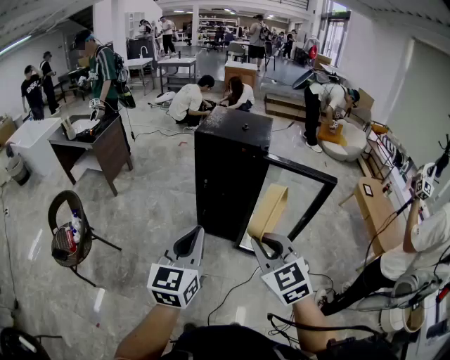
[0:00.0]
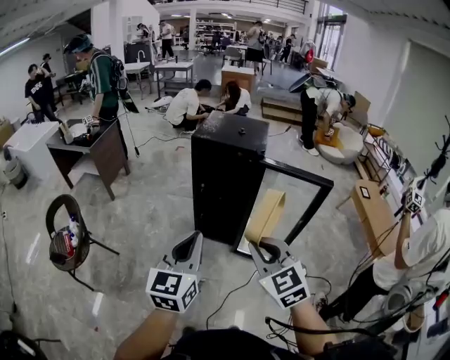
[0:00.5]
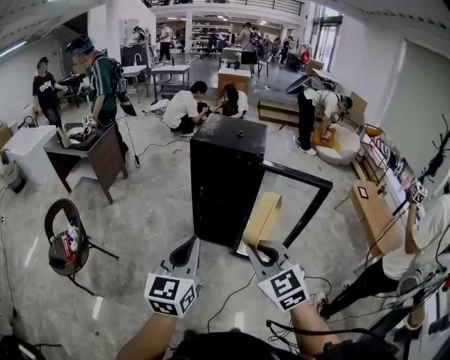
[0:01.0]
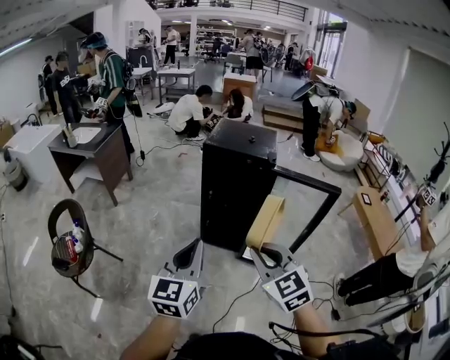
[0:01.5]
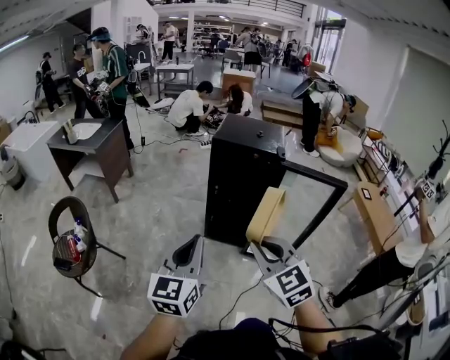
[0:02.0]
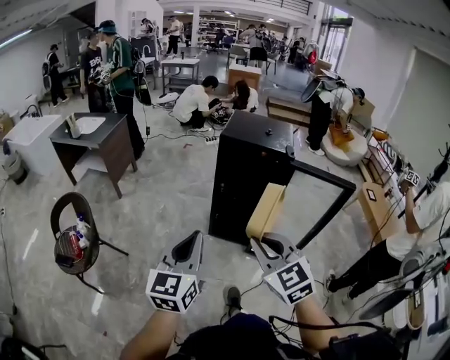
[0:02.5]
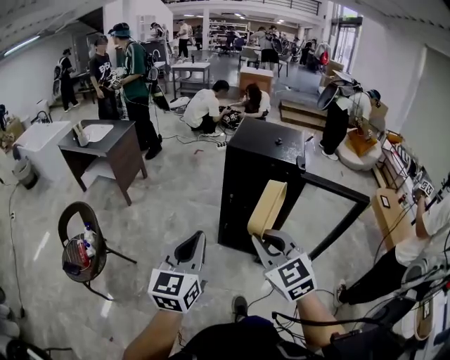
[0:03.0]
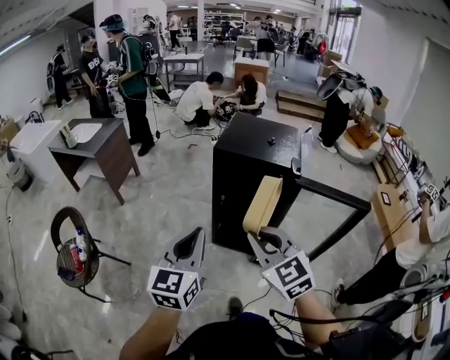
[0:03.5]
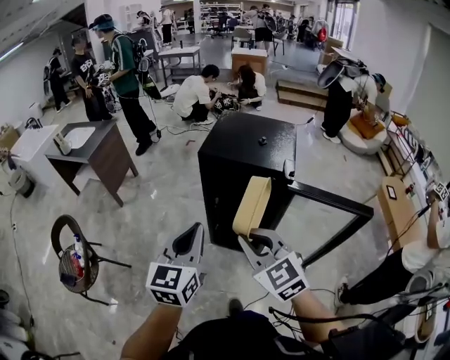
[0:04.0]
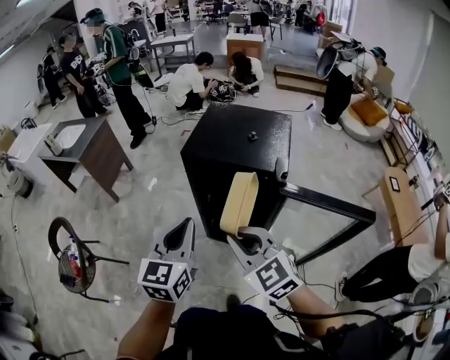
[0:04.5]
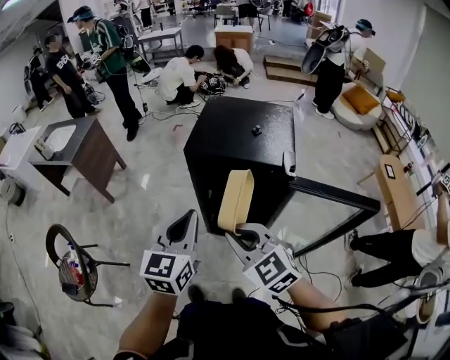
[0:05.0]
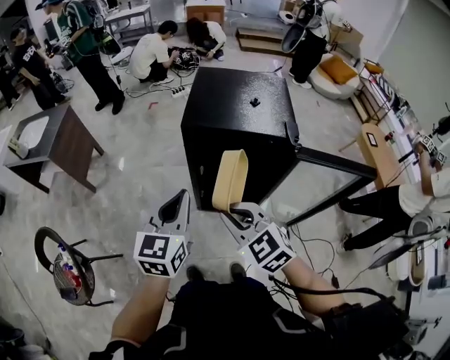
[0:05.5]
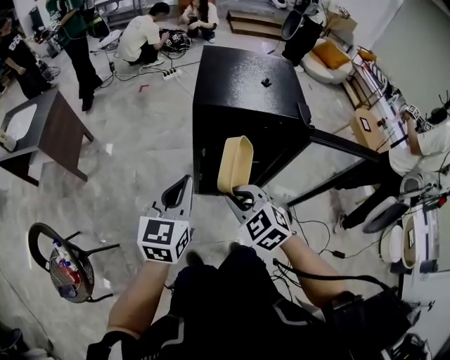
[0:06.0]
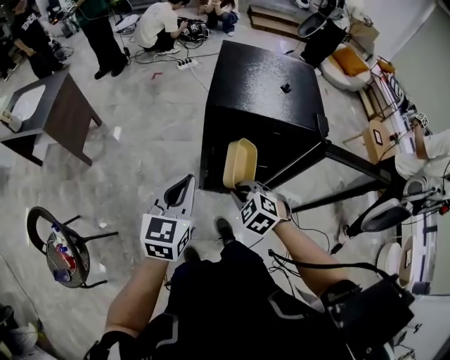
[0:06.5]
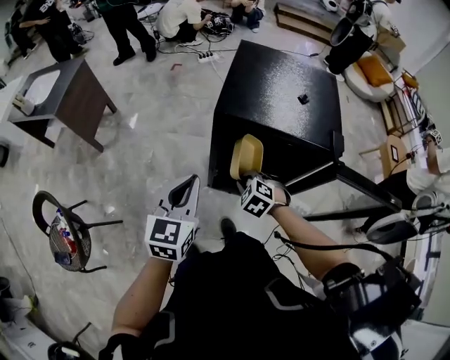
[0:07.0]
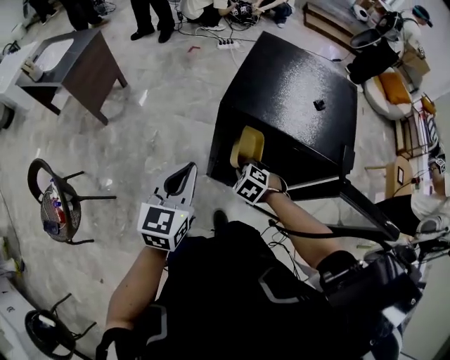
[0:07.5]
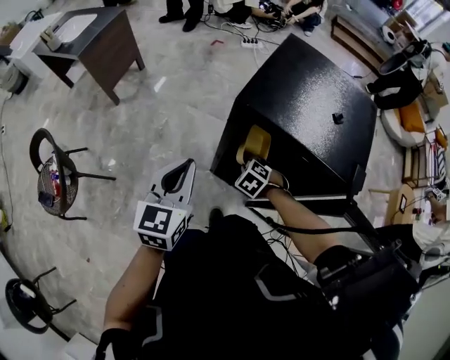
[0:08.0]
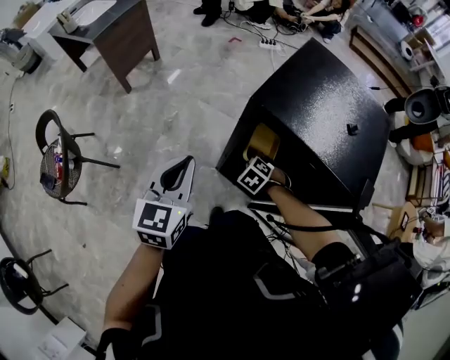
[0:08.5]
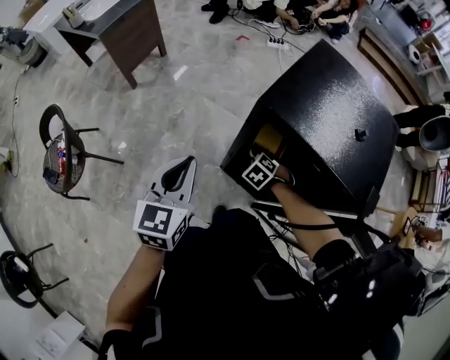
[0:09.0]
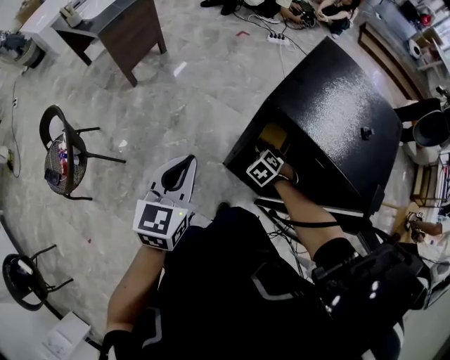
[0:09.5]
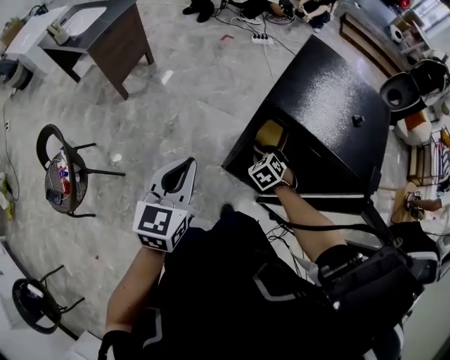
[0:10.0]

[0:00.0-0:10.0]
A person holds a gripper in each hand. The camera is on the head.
0:00.0 to 0:02.0: The grippers both shift to the left by roughly 10 cm.
0:02.0 to 0:04.0: The right gripper goes some 20 cm forward. The left gripper heads forward and to the right, covering about 25 cm.
0:04.0 to 0:06.0: The left gripper heads forward, downward and to the left, covering about 20 cm. The right gripper shifts about 20 cm downward, forward and to the left, and swivels some 20 degrees.
0:06.0 to 0:08.0: The left gripper goes some 10 cm forward and downward, and rotates about 20 degrees, while the right gripper heads downward and forward, covering roughly 30 cm, and tips its fingers downward by roughly 30 degrees.
0:08.0 to 0:10.0: The left gripper is displaced to the left by roughly 5 cm, while the right gripper opens its fingers.

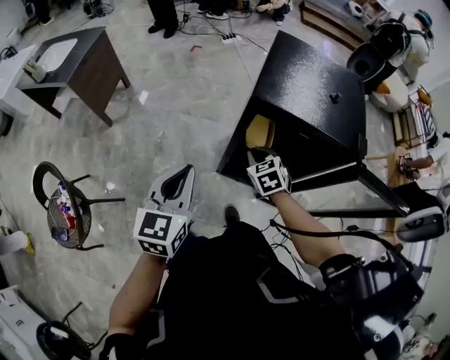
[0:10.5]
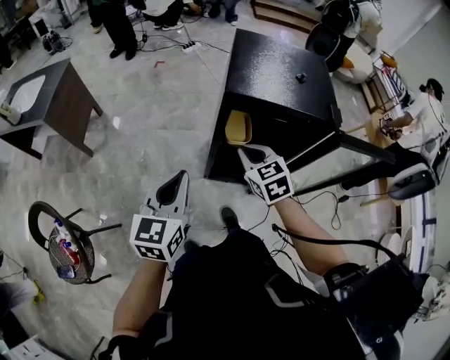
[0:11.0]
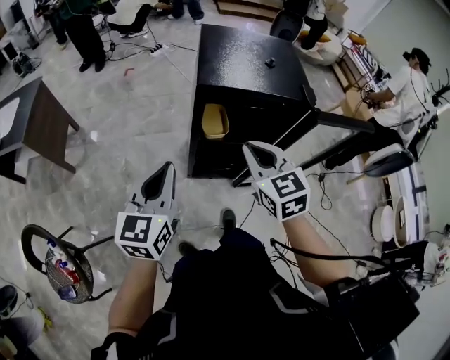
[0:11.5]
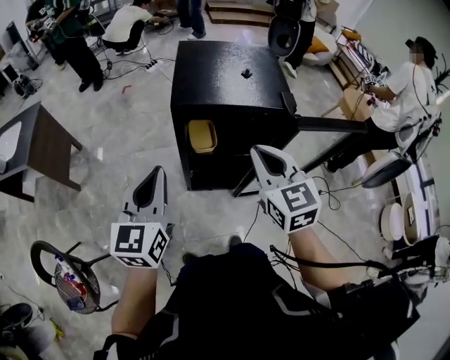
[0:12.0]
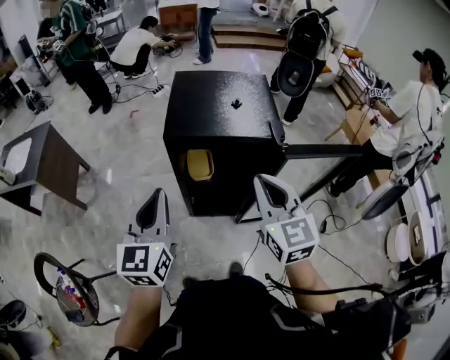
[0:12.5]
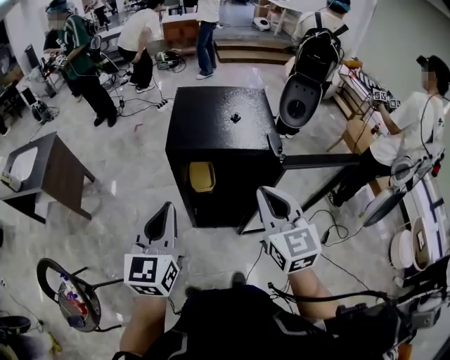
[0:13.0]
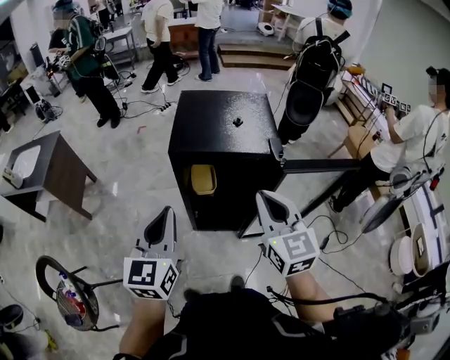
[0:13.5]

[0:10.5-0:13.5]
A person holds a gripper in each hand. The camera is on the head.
0:10.5 to 0:12.0: The right gripper travels upward, backward and to the right by roughly 30 cm, and rotates roughly 40 degrees; the left gripper shifts roughly 10 cm upward and to the right.
0:12.0 to 0:13.5: The two grippers go roughly 5 cm to the right.

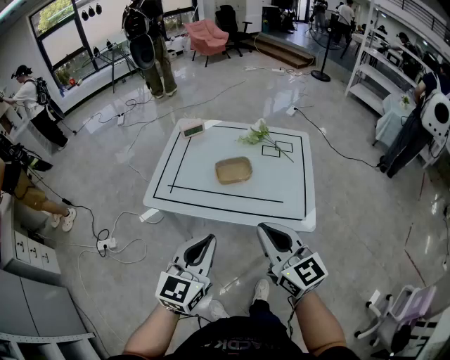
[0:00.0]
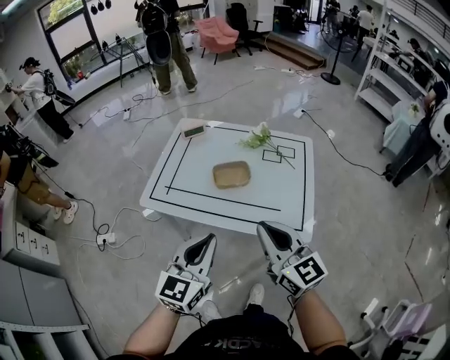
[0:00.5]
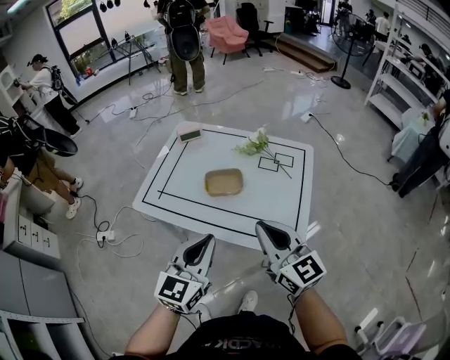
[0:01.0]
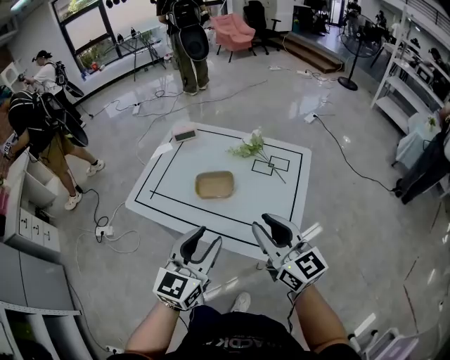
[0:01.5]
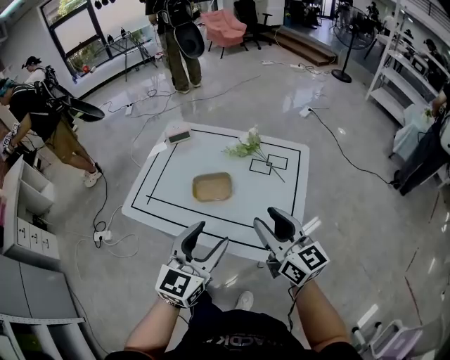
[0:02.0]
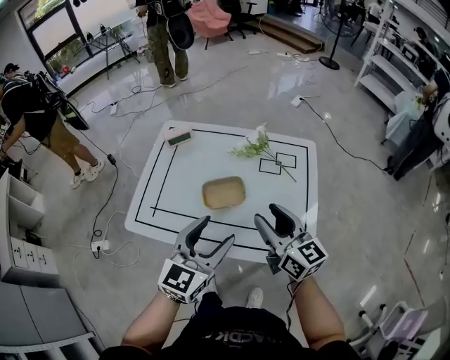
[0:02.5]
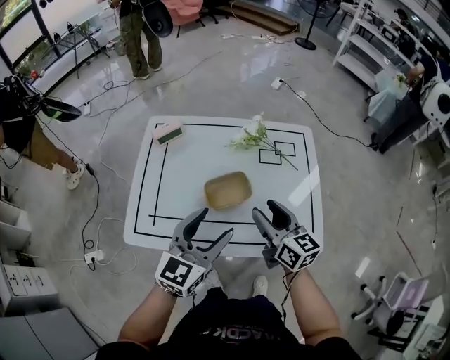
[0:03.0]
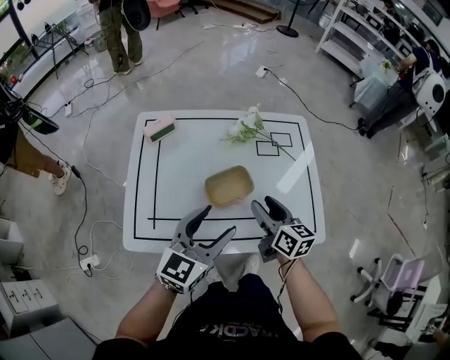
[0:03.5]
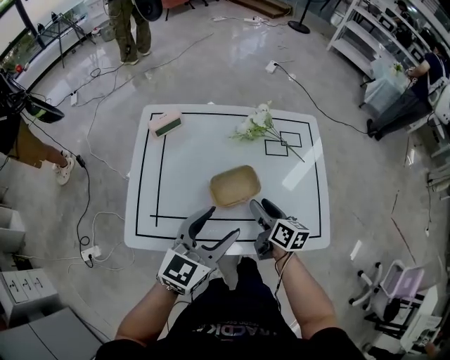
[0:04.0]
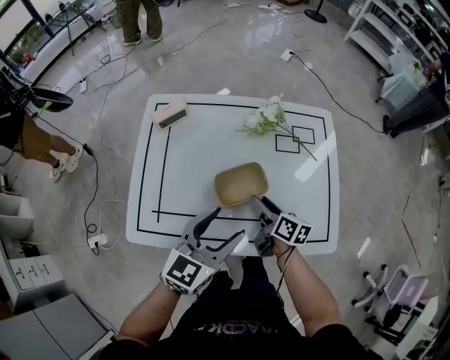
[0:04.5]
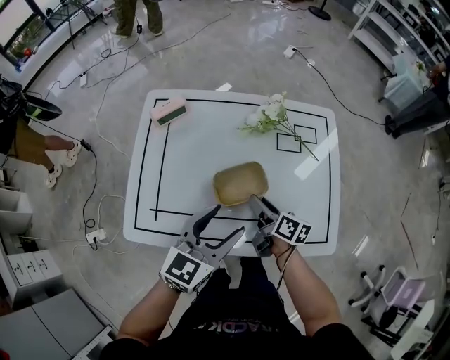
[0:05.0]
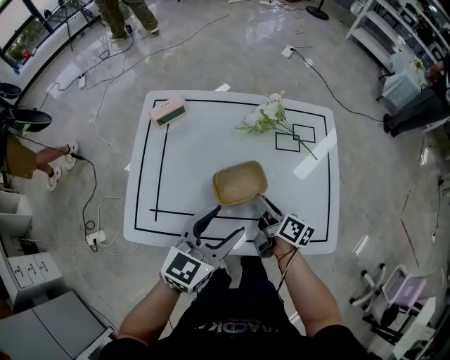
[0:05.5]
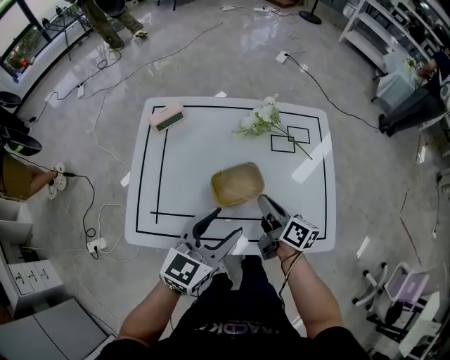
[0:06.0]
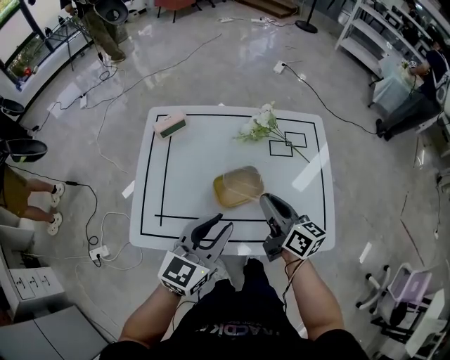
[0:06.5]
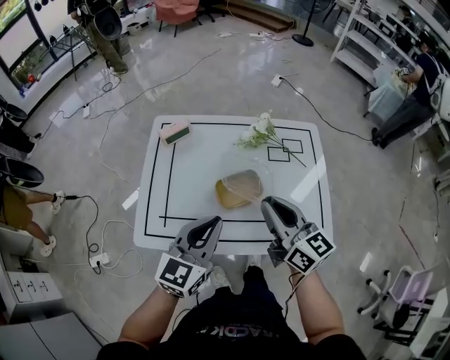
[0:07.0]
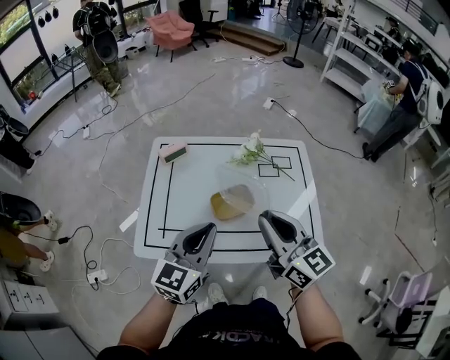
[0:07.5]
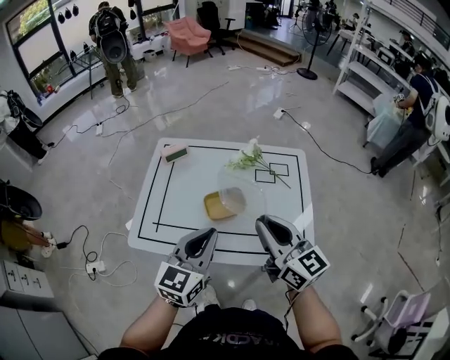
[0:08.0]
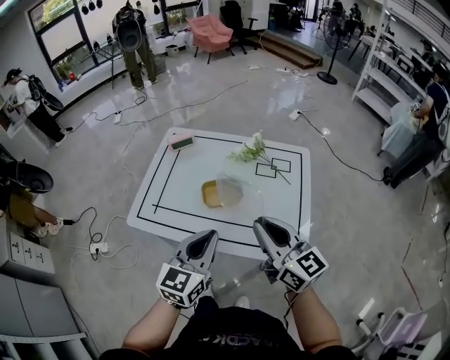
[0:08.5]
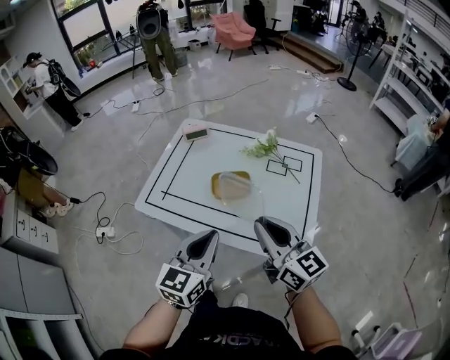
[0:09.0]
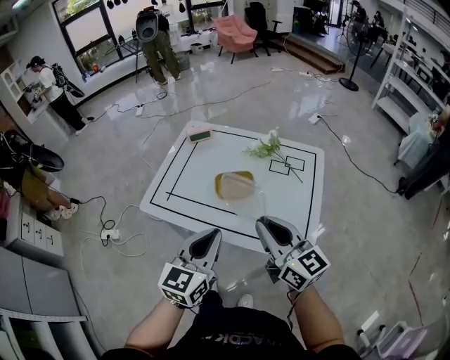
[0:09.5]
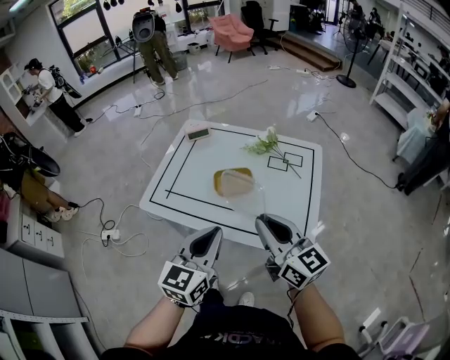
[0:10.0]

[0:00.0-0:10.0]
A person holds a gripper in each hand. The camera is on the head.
0:00.0 to 0:02.0: Both grippers travel together to the right and forward, approximately 20 cm. The left gripper opens; the right gripper opens up.
0:02.0 to 0:04.0: The left gripper moves about 20 cm, and swivels some 30 degrees. The right gripper travels downward by roughly 20 cm, and swivels roughly 50 degrees.
0:04.0 to 0:06.0: The right gripper closes.
0:06.0 to 0:08.0: The left gripper heads upward and backward, covering some 10 cm, and closes. Meanwhile the right gripper is displaced upward and backward by approximately 25 cm, and rotates around the line of its fingers by roughly 40 degrees, counterclockwise from behind.
0:08.0 to 0:10.0: The grippers both shift backward by approximately 10 cm.

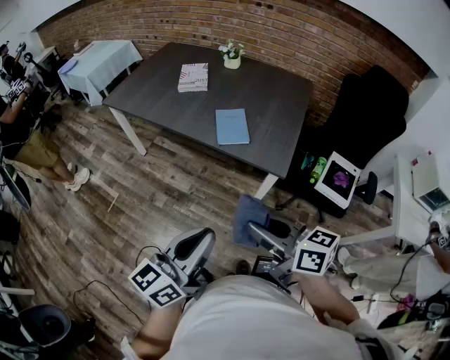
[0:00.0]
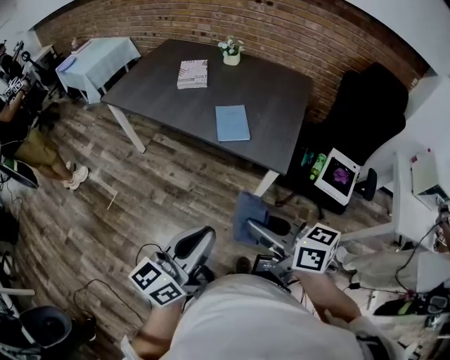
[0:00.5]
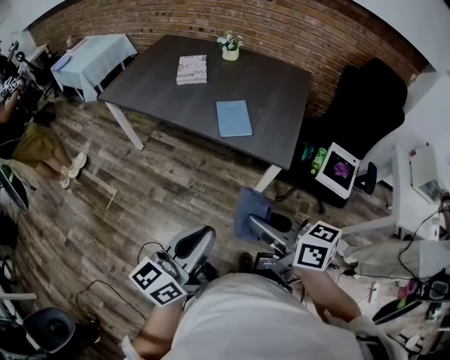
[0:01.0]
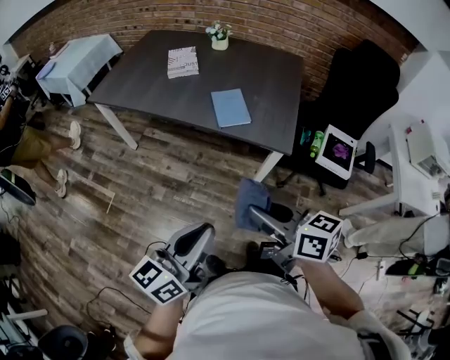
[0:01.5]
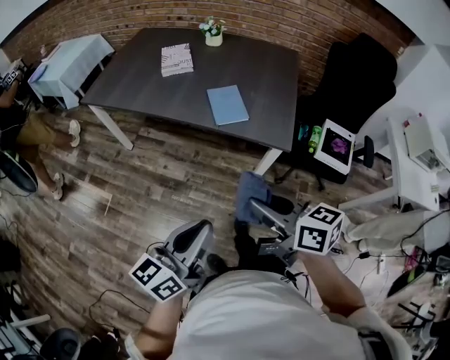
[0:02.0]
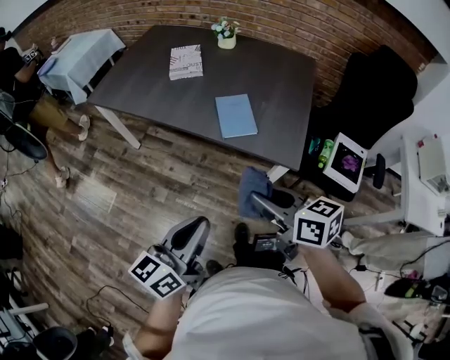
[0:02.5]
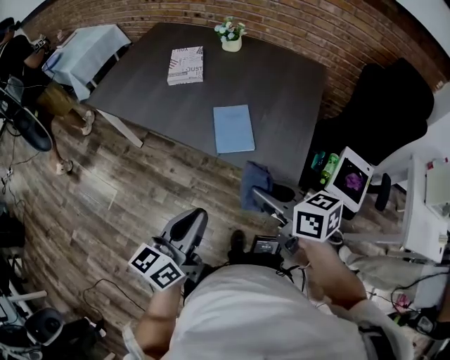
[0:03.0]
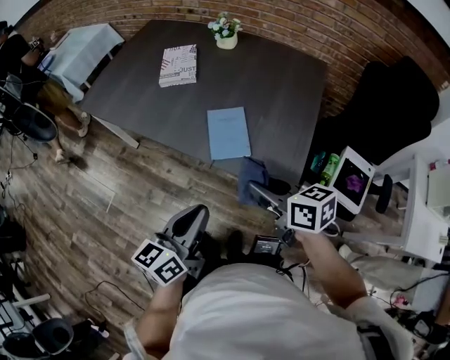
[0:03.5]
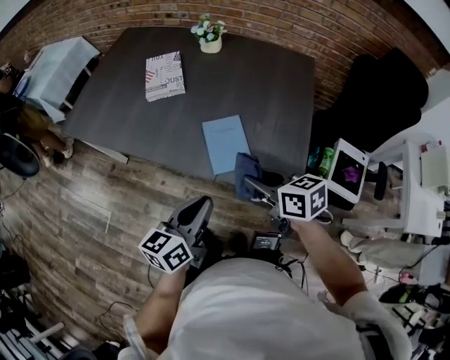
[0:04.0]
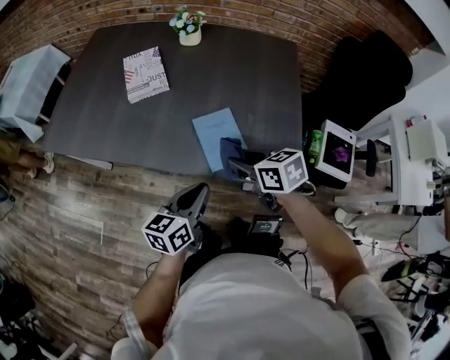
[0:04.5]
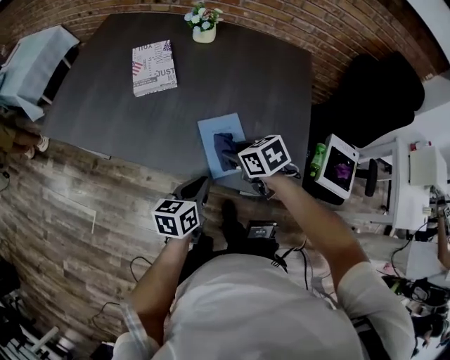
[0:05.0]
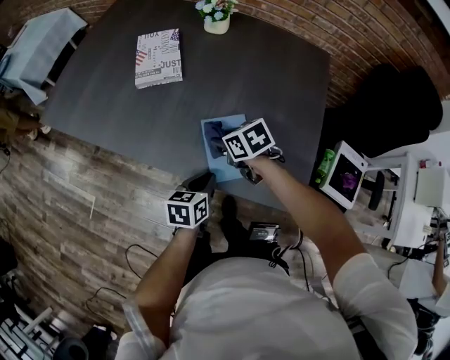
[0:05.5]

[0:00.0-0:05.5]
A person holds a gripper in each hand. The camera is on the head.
0:00.0 to 0:02.0: Both grippers move to the left, roughly 5 cm.
0:02.0 to 0:03.5: Both grippers travel together forward and to the right, about 25 cm.
0:03.5 to 0:05.5: The two grippers go about 30 cm forward and downward. The right gripper turns by some 30 degrees, while the left gripper swivels some 30 degrees.
